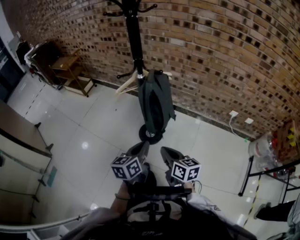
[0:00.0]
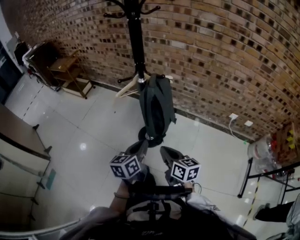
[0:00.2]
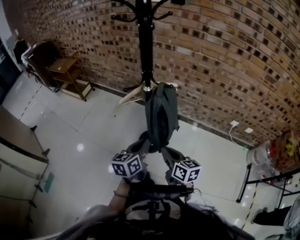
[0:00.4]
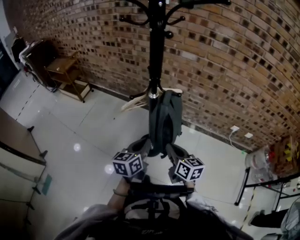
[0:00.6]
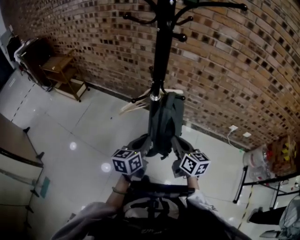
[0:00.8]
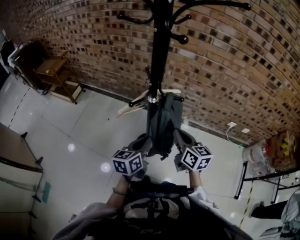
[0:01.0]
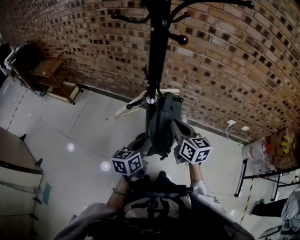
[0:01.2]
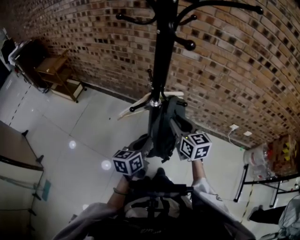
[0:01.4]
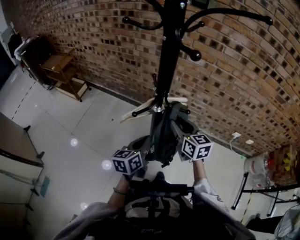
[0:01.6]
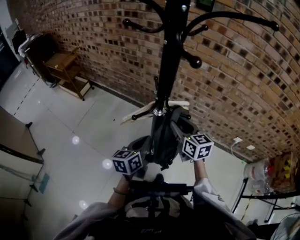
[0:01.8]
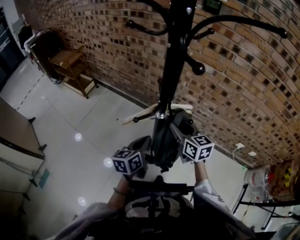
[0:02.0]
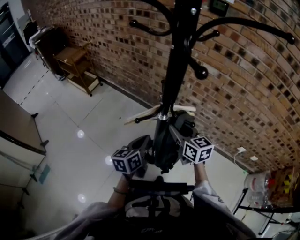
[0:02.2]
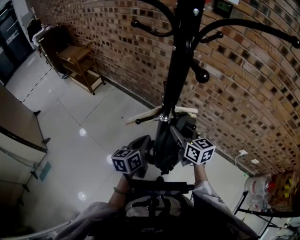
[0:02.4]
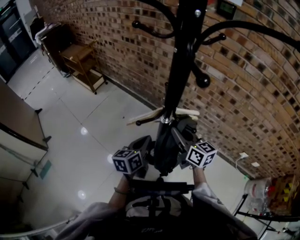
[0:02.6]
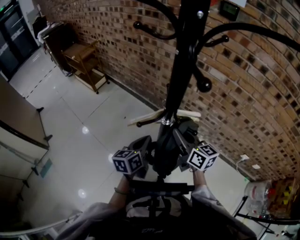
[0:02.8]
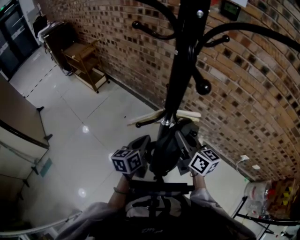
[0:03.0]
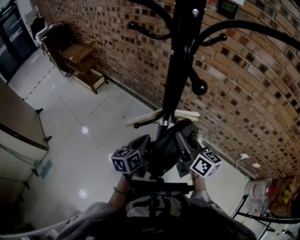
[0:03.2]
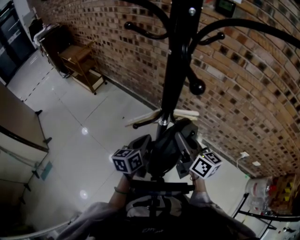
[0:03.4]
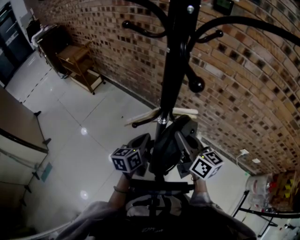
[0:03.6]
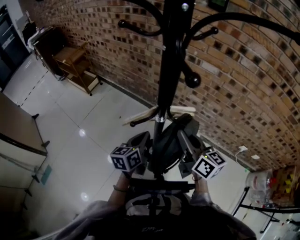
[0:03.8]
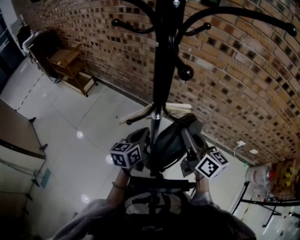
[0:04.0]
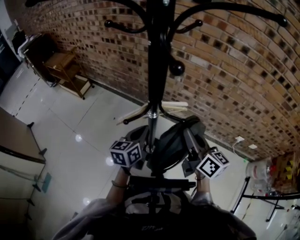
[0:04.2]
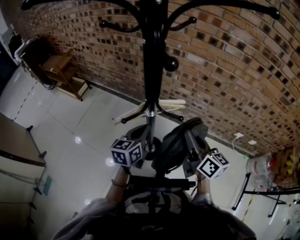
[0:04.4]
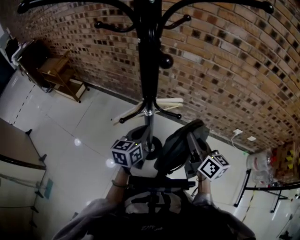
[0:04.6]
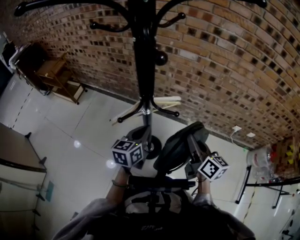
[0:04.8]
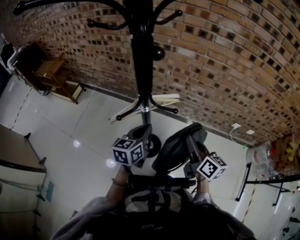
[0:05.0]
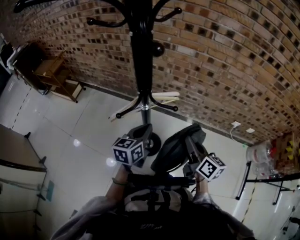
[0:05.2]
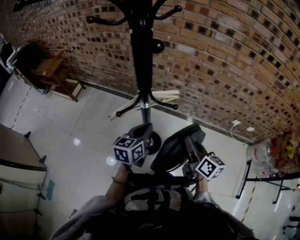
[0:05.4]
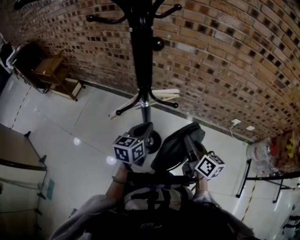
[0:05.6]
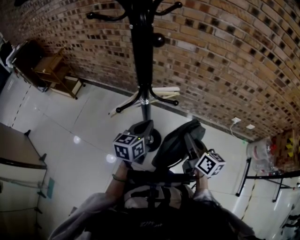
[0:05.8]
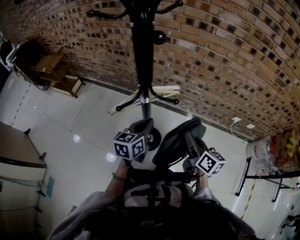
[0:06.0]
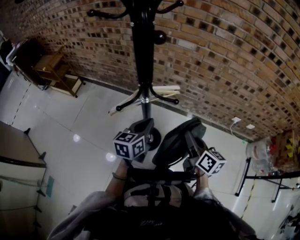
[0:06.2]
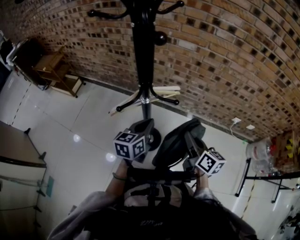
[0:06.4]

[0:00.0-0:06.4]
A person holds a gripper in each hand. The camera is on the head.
0:00.0 to 0:01.6: The right gripper travels forward by about 35 cm, turns by roughly 20 degrees, and opens; the left gripper moves forward and to the left, about 25 cm.
0:01.6 to 0:03.2: The right gripper changes its angle by some 30 degrees, and closes, while the left gripper travels forward by roughly 5 cm.
0:03.2 to 0:04.8: The right gripper is displaced to the right and backward by about 15 cm, and swivels roughly 20 degrees, while the left gripper heads to the right, covering roughly 5 cm, and rotates about 20 degrees.
0:04.8 to 0:06.4: The grippers stay close to where they were, moving slightly.

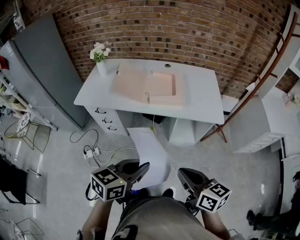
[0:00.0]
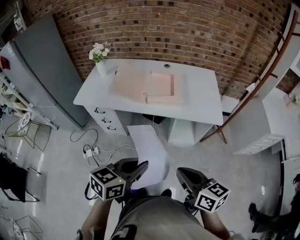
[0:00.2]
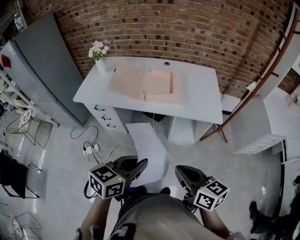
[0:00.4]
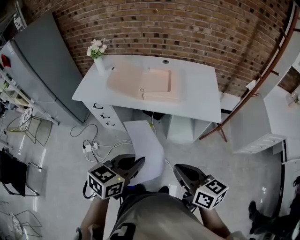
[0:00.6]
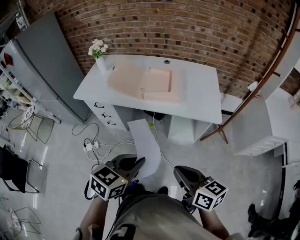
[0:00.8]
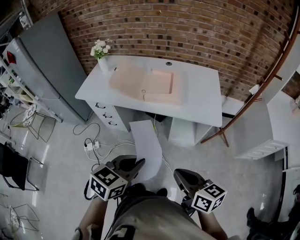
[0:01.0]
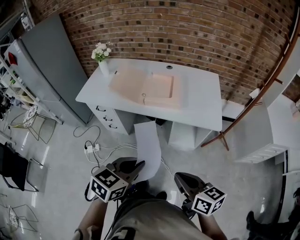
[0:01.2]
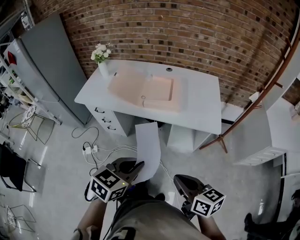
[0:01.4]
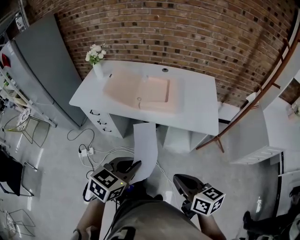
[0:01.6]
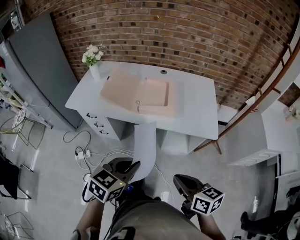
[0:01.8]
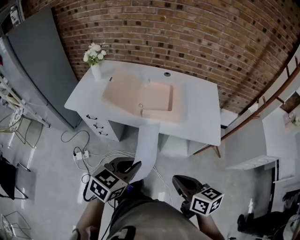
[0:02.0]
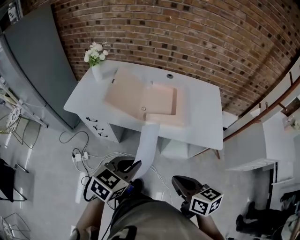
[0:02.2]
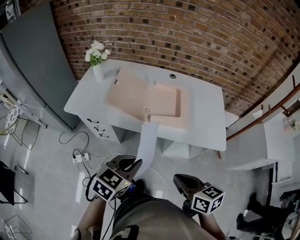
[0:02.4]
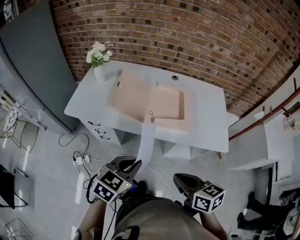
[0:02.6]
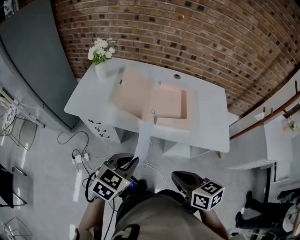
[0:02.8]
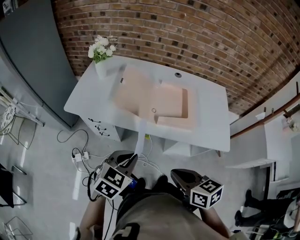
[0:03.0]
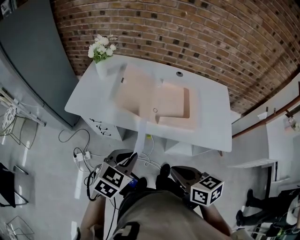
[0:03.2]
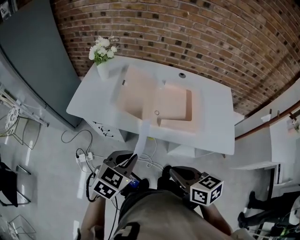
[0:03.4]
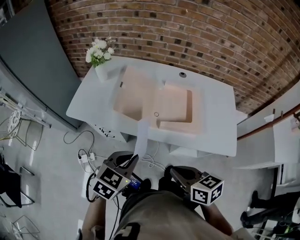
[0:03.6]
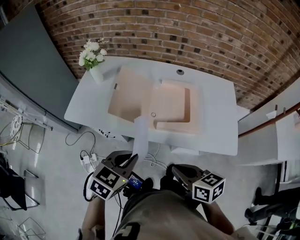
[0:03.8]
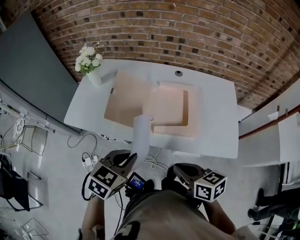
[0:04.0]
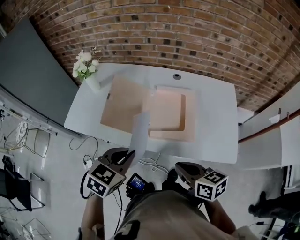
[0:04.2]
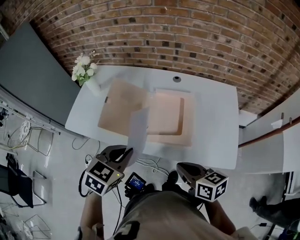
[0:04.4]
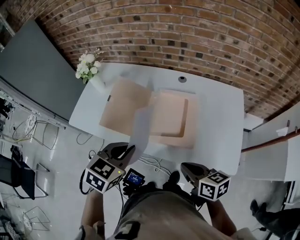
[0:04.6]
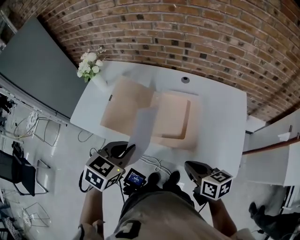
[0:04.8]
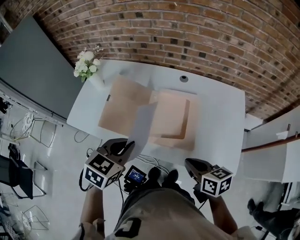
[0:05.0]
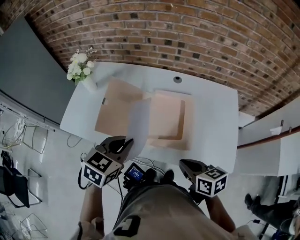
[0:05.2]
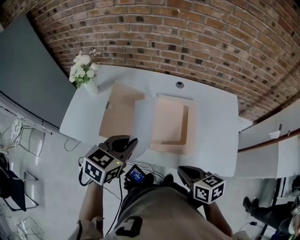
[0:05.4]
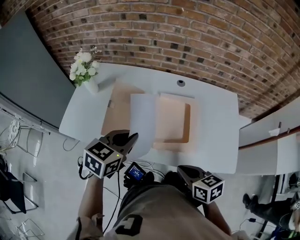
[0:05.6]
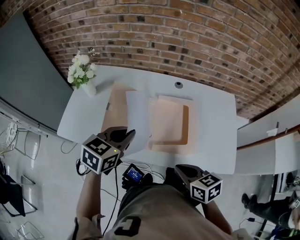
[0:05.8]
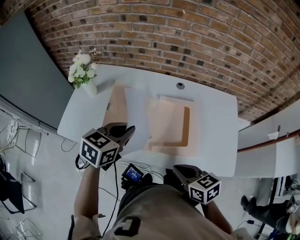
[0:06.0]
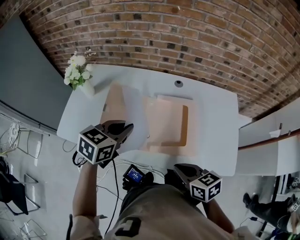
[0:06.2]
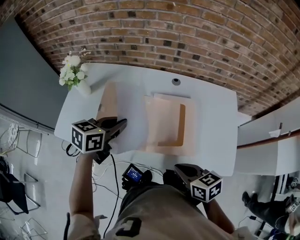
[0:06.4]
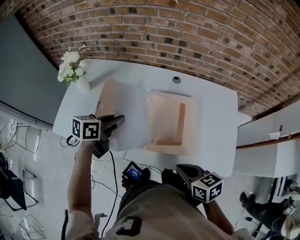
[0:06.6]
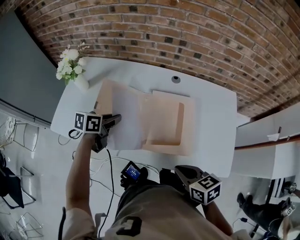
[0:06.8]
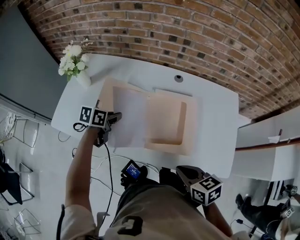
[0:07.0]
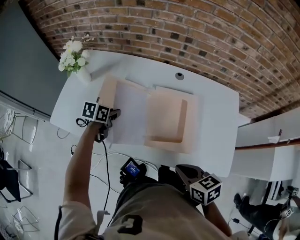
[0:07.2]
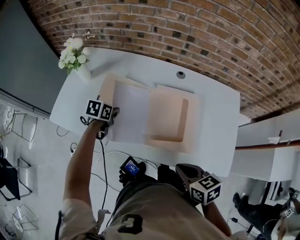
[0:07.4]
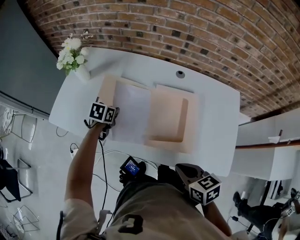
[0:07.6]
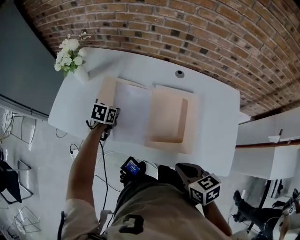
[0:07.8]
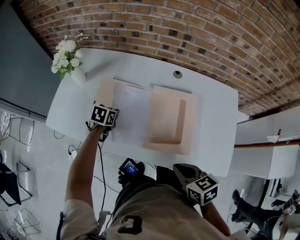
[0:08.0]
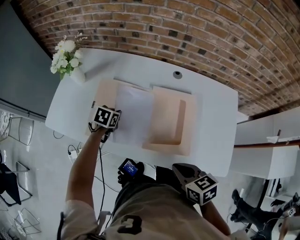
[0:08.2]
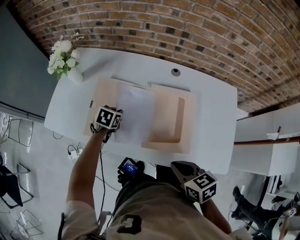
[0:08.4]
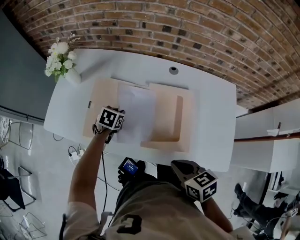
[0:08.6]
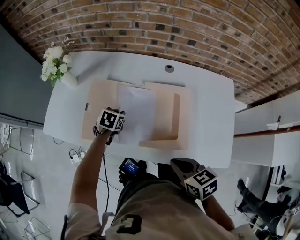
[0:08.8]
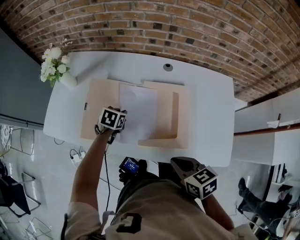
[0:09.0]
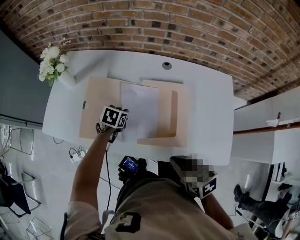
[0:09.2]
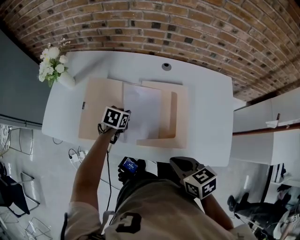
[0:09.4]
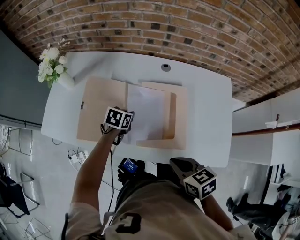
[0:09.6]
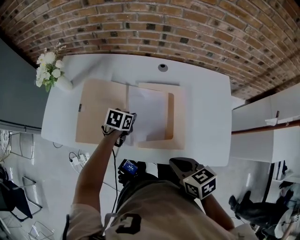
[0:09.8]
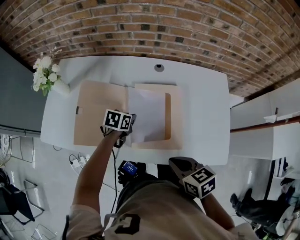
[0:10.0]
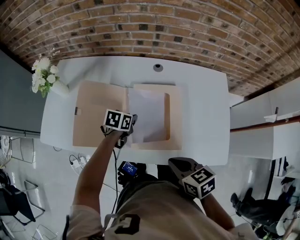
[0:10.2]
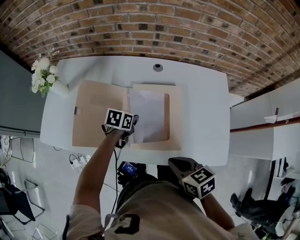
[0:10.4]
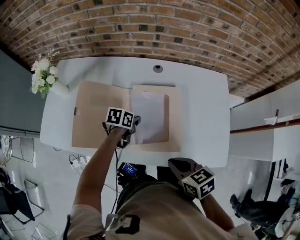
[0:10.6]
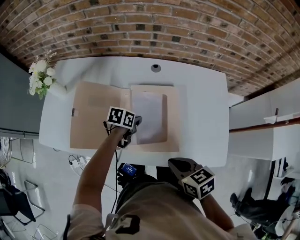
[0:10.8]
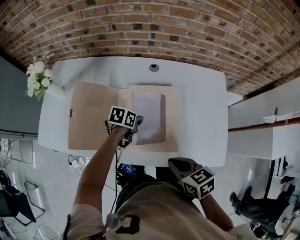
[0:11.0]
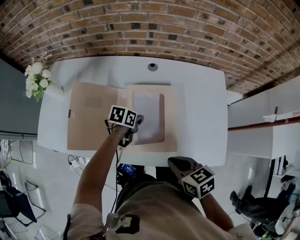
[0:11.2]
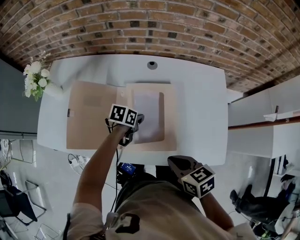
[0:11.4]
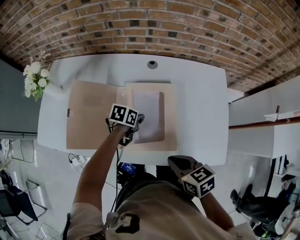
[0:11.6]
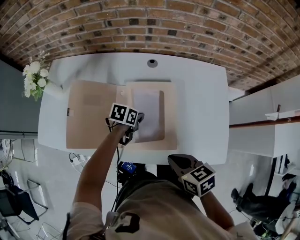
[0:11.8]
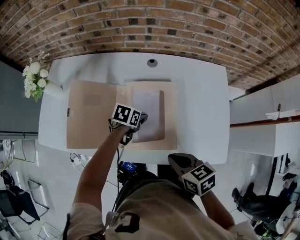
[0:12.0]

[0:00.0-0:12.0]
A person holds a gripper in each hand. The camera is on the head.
0:00.0 to 0:01.6: The left gripper heads to the right and forward, covering some 10 cm. Meanwhile the right gripper goes some 10 cm to the right.
0:01.6 to 0:03.0: The right gripper shifts roughly 20 cm to the left and forward. Meanwhile the left gripper is displaced forward and to the left by approximately 25 cm.
0:03.0 to 0:04.4: The two grippers go approximately 15 cm forward and to the right.
0:04.4 to 0:06.0: The left gripper shifts approximately 15 cm forward. Meanwhile the right gripper is displaced to the left and forward by about 10 cm.
0:06.0 to 0:07.6: The left gripper travels downward and forward by some 25 cm, and swivels about 30 degrees, while the right gripper changes place by approximately 5 cm.
0:07.6 to 0:09.0: The left gripper goes some 10 cm to the right.
0:09.0 to 0:10.4: The left gripper shifts about 10 cm to the right.
0:10.4 to 0:12.0: The left gripper heads to the right, covering roughly 5 cm, and opens its fingers.

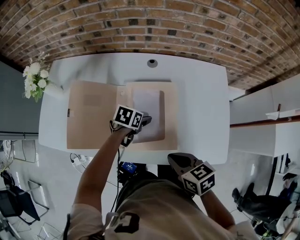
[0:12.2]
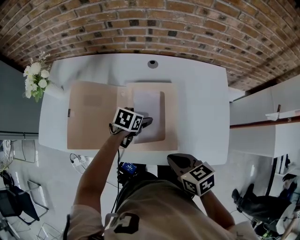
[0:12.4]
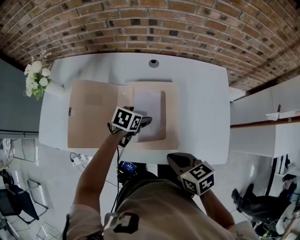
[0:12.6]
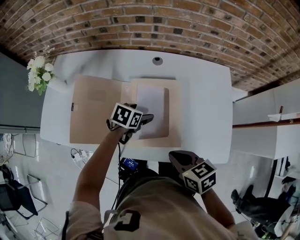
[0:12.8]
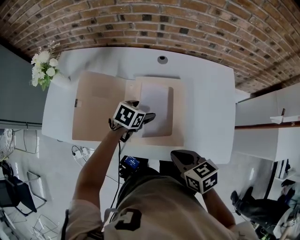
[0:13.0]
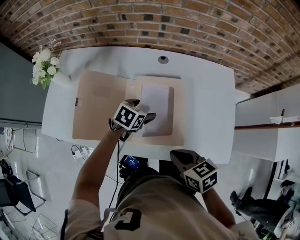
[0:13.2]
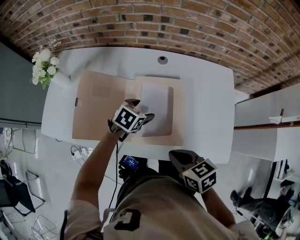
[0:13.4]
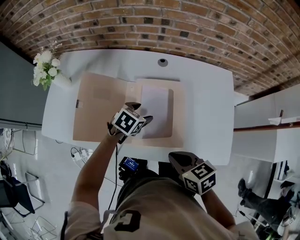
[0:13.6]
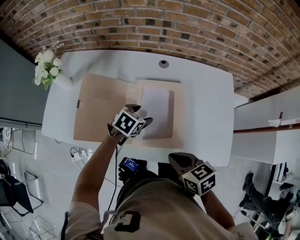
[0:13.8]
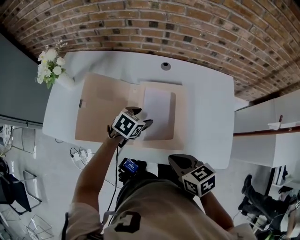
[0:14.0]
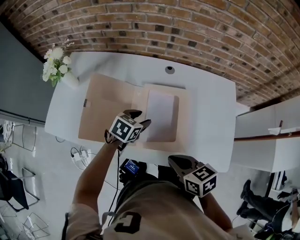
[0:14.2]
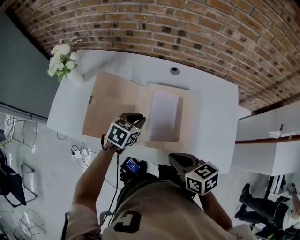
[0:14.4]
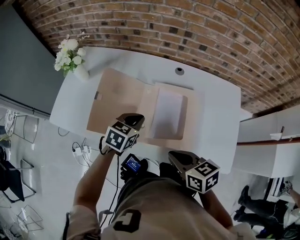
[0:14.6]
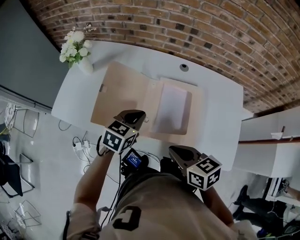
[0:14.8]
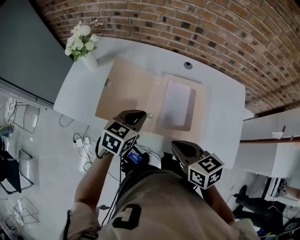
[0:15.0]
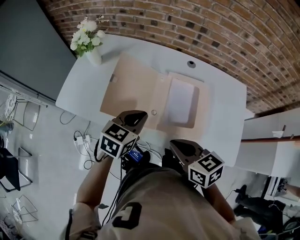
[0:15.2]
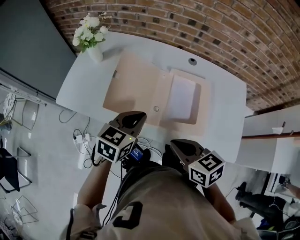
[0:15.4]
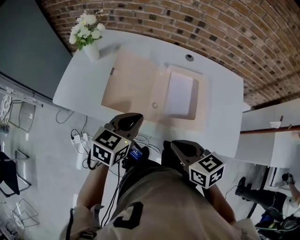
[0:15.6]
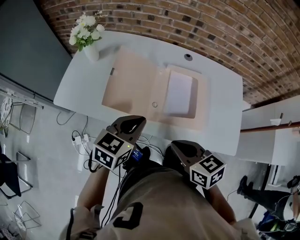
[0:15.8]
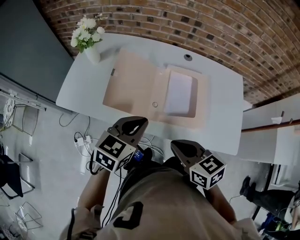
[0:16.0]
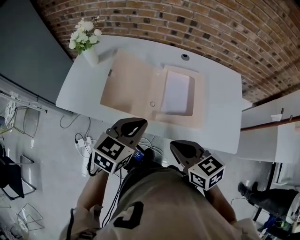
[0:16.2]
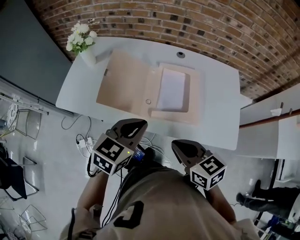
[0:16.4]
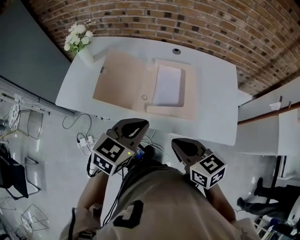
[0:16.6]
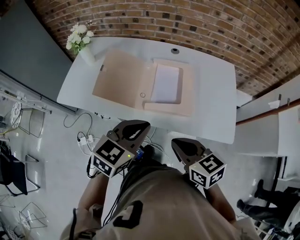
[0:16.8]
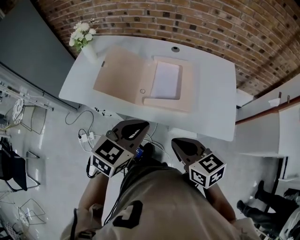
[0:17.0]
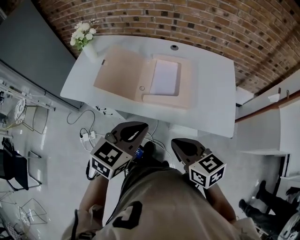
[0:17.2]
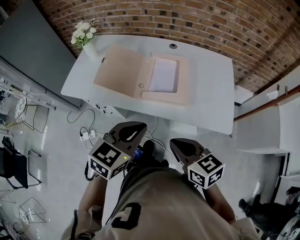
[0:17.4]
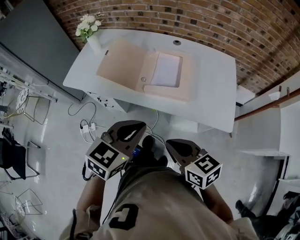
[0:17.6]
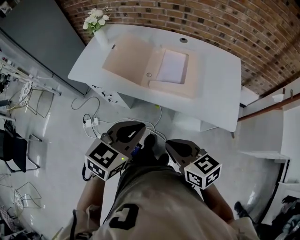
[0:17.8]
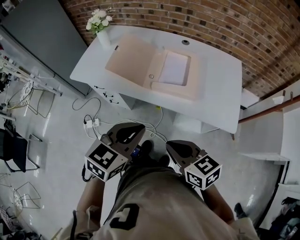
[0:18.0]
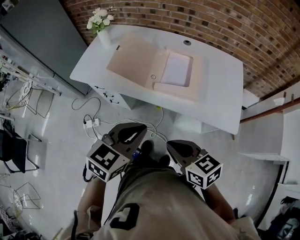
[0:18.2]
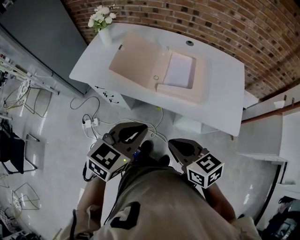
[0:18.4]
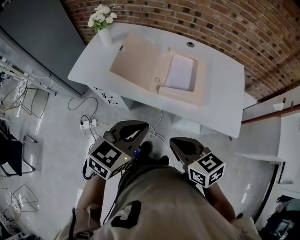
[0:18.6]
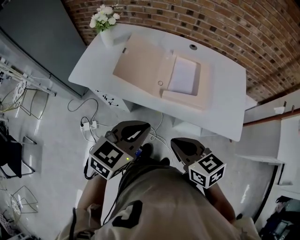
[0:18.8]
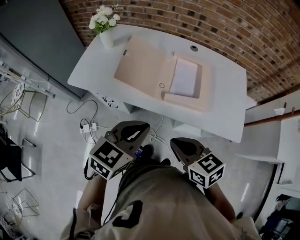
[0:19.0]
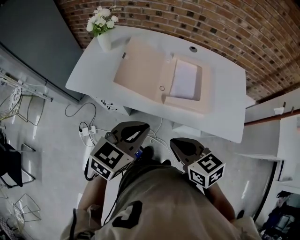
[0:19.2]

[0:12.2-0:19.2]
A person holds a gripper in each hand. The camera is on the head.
0:12.2 to 0:13.6: The left gripper ends up approximately 5 cm from where it was, and swivels some 20 degrees.
0:13.6 to 0:15.0: The right gripper travels to the left by about 5 cm, while the left gripper heads upward, to the left and backward, covering some 15 cm, rotates approximately 30 degrees, and closes its fingers.
0:15.0 to 0:16.4: The right gripper is displaced backward by about 10 cm. The left gripper moves backward and upward, about 15 cm.
0:16.4 to 0:17.8: The two grippers go some 15 cm backward.
0:17.8 to 0:19.2: The right gripper travels forward and to the left by roughly 15 cm. Meanwhile the left gripper goes roughly 15 cm to the left and forward.
